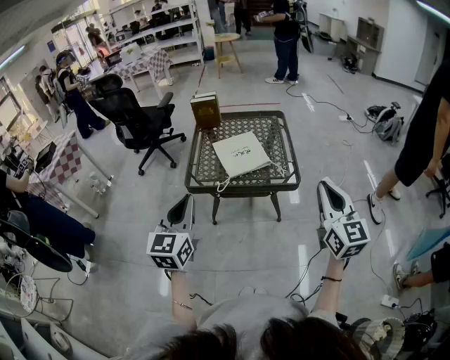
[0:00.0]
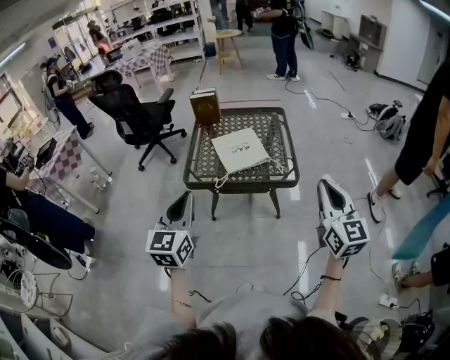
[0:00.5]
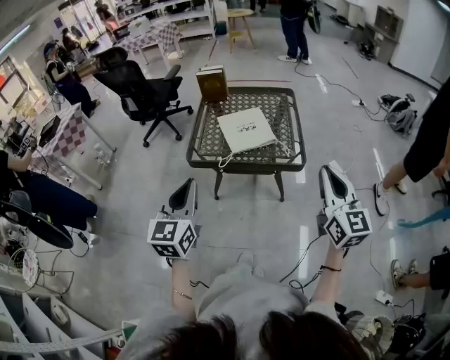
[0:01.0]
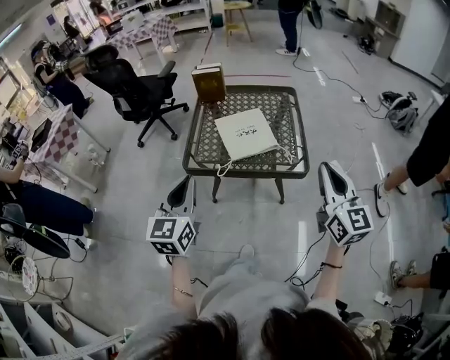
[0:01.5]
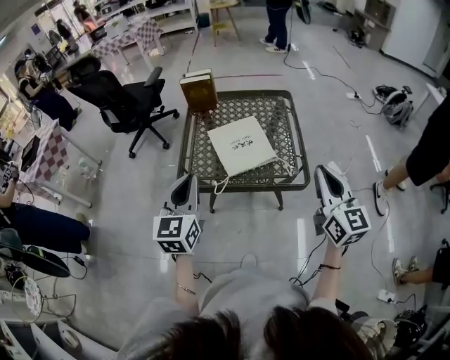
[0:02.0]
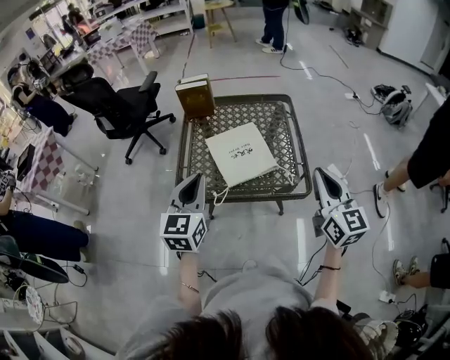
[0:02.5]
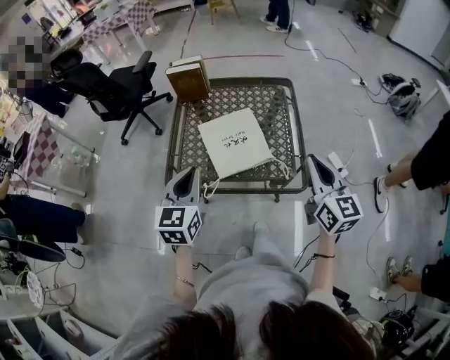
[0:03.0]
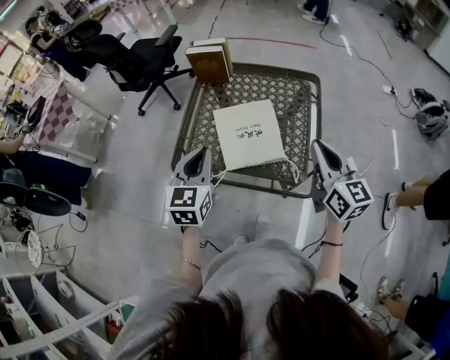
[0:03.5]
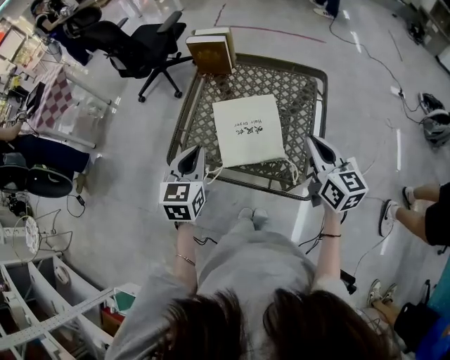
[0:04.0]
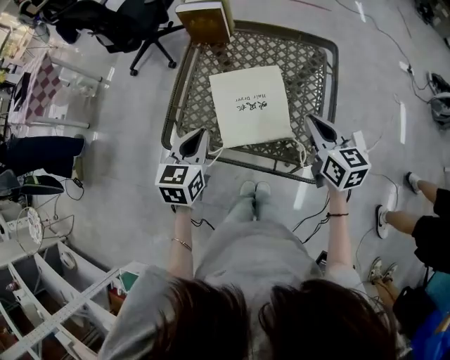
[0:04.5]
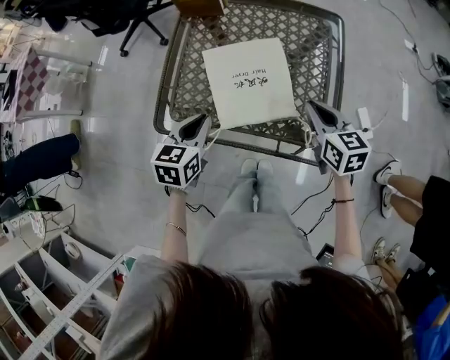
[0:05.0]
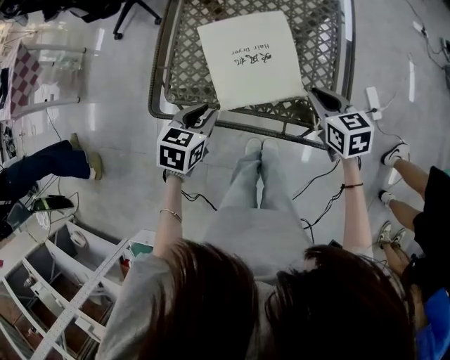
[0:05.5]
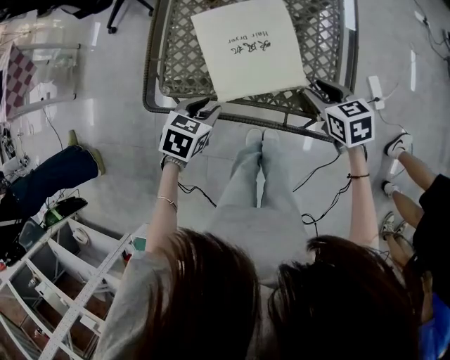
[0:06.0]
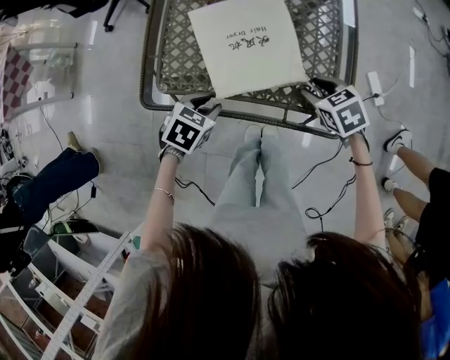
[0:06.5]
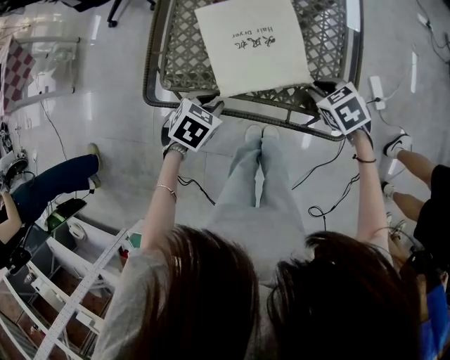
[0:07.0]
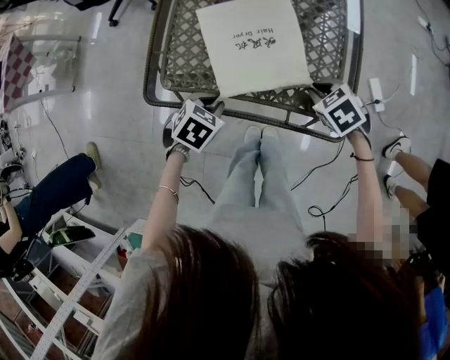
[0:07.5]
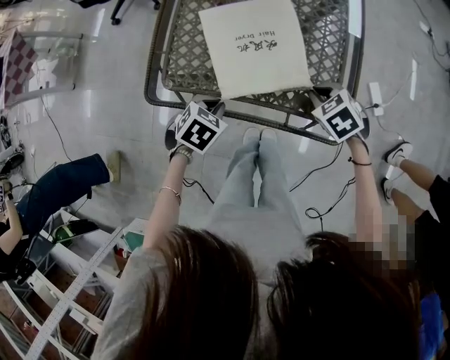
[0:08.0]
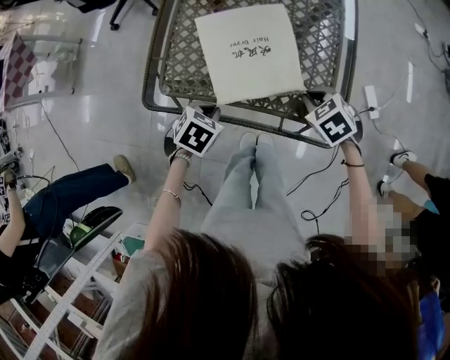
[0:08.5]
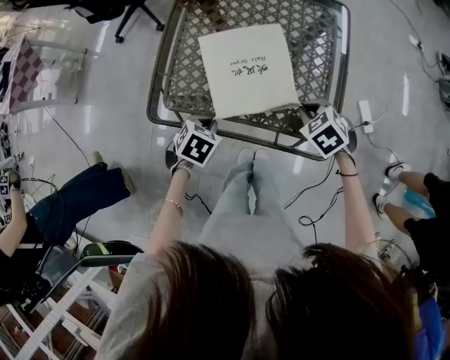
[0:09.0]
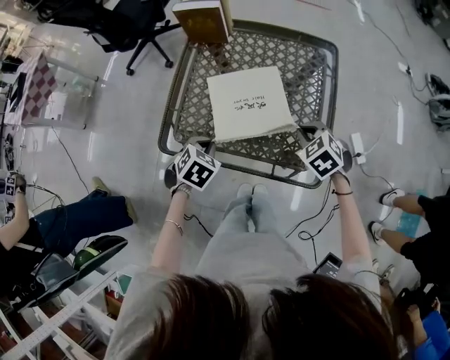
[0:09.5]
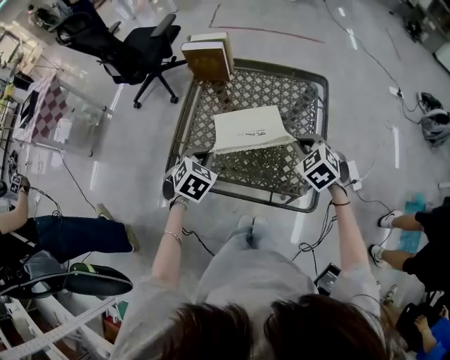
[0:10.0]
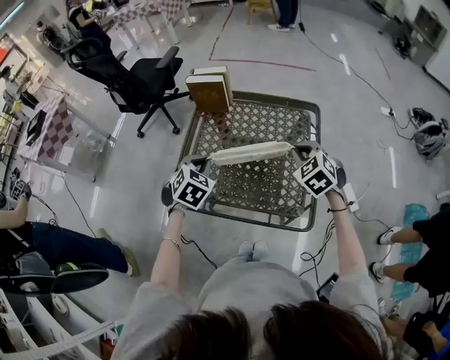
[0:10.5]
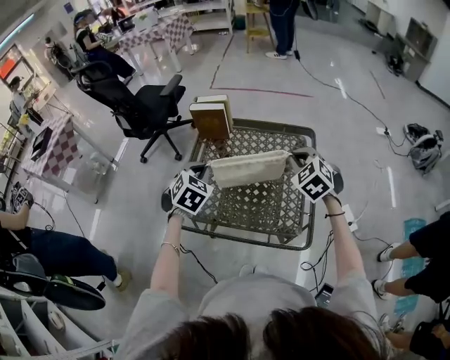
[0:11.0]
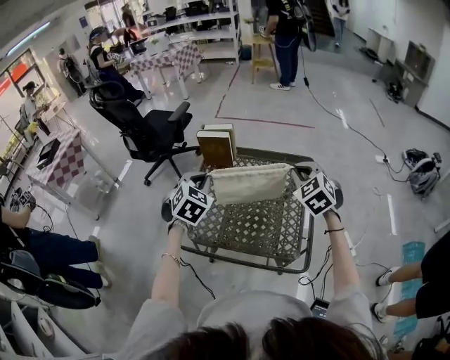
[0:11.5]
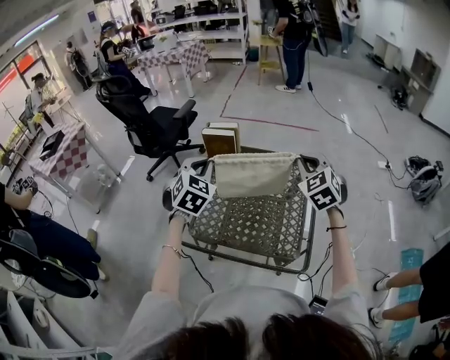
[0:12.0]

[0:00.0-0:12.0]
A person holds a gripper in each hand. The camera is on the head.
0:00.0 to 0:02.0: Both grippers travel together forward, approximately 15 cm.
0:02.0 to 0:04.0: Both grippers move forward and downward, some 20 cm. The right gripper turns by about 30 degrees.
0:04.0 to 0:06.0: The grippers both shift downward by roughly 25 cm. The left gripper points its fingers about 30 degrees further downward, and opens, while the right gripper tilts its fingers about 40 degrees downward, and opens.
0:06.0 to 0:08.0: The right gripper rotates approximately 30 degrees, and closes up. The left gripper closes up.
0:08.0 to 0:10.0: The grippers both shift upward and forward by about 15 cm. The left gripper swivels approximately 20 degrees; the right gripper swivels about 20 degrees.
0:10.0 to 0:12.0: Both grippers move upward, approximately 25 cm. The left gripper tilts its fingers about 30 degrees upward, while the right gripper swivels about 30 degrees.

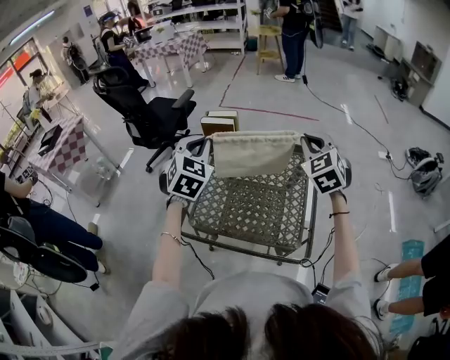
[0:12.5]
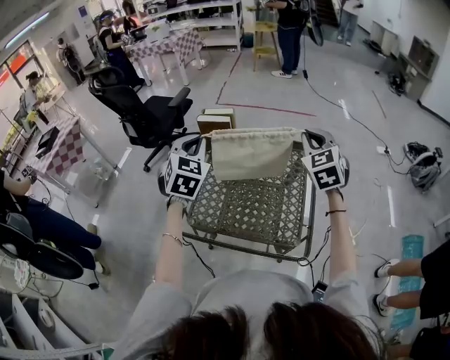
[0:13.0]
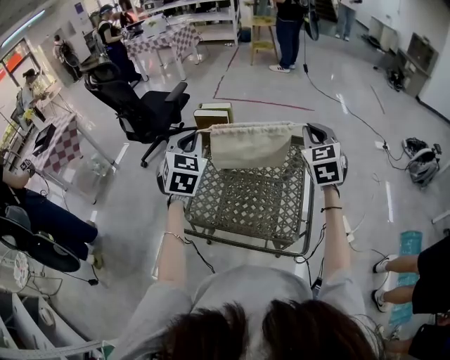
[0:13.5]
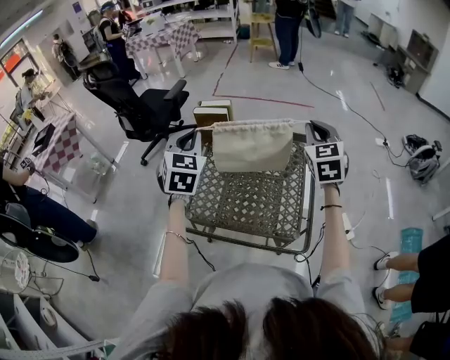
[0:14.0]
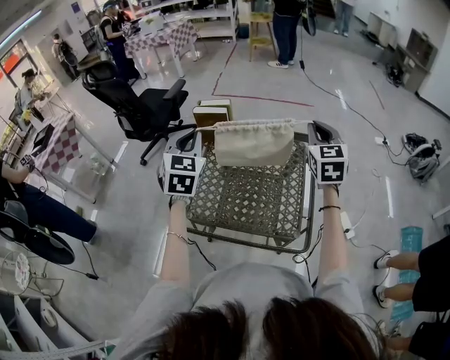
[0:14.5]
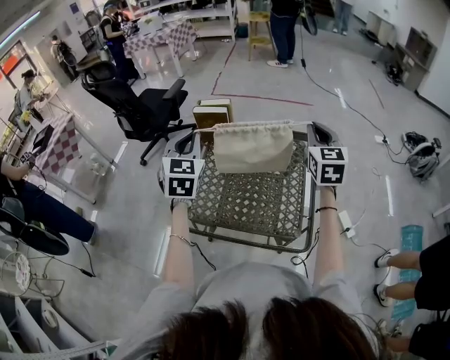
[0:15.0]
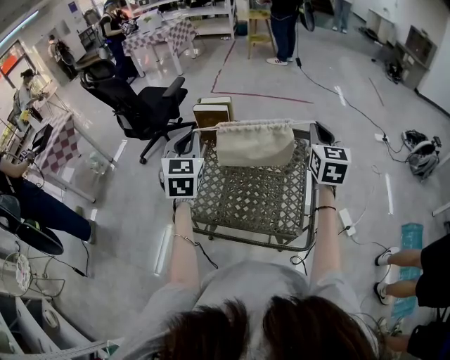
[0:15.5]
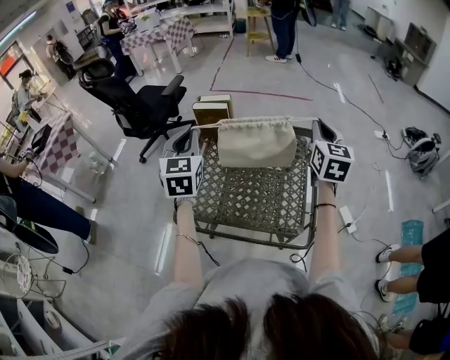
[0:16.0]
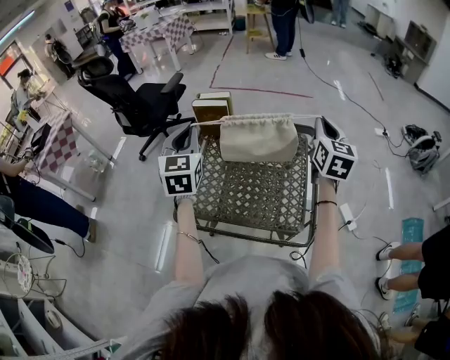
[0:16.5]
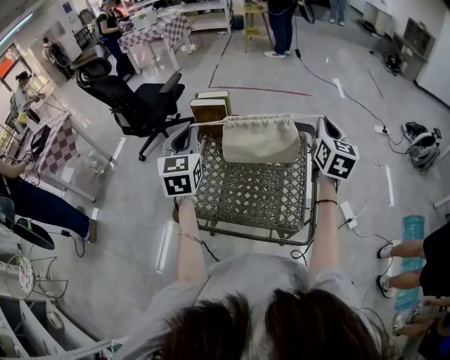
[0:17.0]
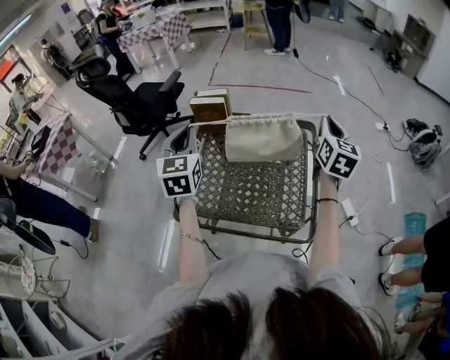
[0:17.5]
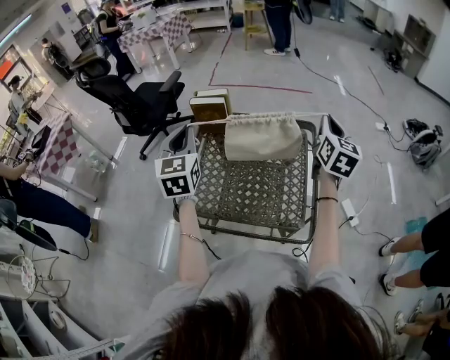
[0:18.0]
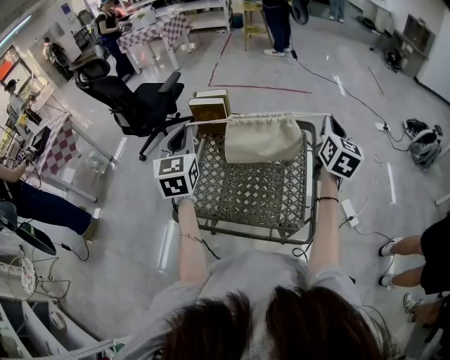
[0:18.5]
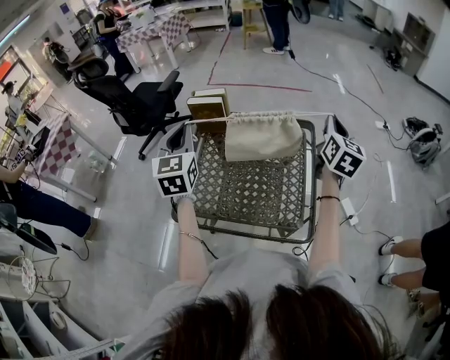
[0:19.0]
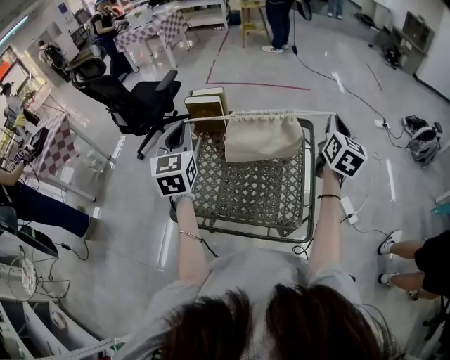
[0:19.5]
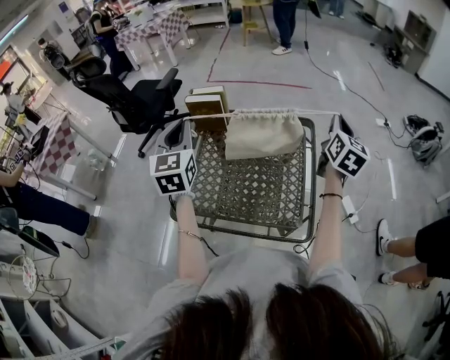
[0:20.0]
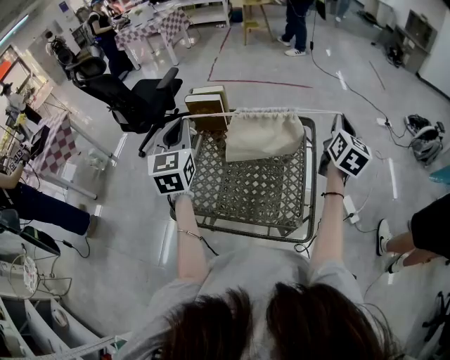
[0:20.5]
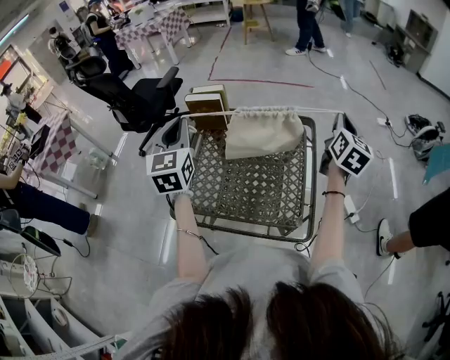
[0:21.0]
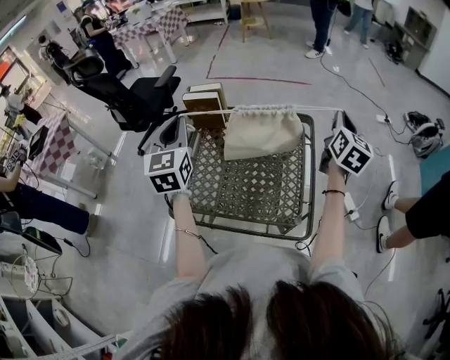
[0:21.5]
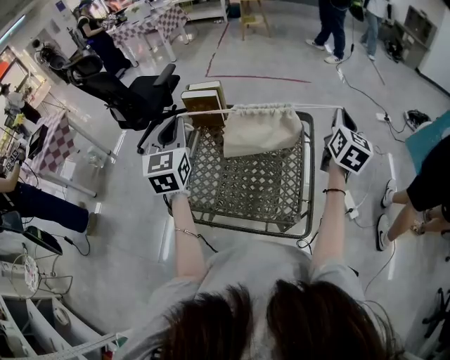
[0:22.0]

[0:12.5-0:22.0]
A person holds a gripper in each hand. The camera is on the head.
0:12.5 to 0:14.5: The right gripper rotates approximately 30 degrees.
0:14.5 to 0:16.5: The right gripper turns by approximately 20 degrees.
0:16.5 to 0:18.0: The grippers stay close to where they were, moving slightly.
0:18.0 to 0:20.0: The right gripper goes roughly 5 cm to the right.
0:20.0 to 0:22.0: The grippers move only a little.

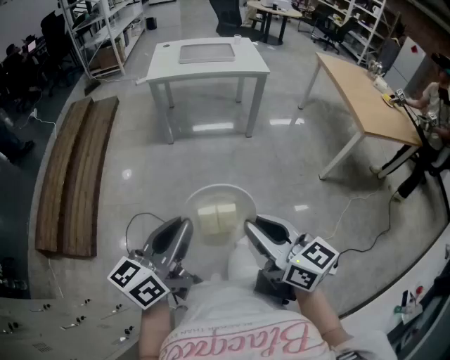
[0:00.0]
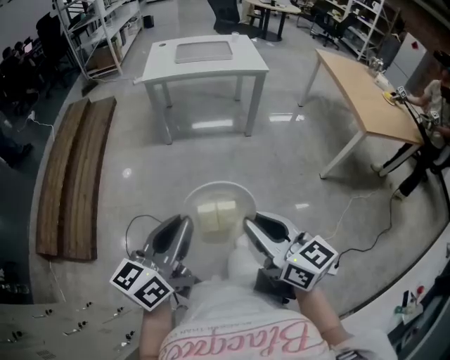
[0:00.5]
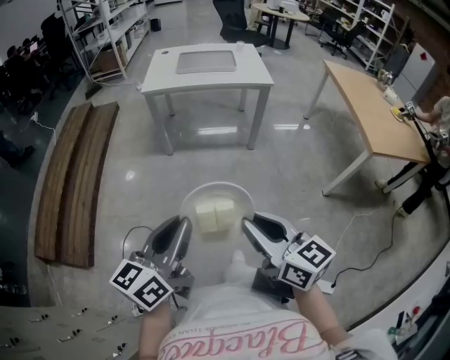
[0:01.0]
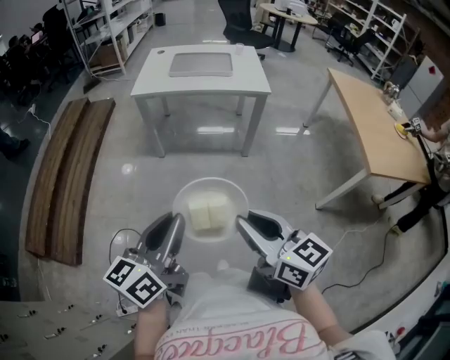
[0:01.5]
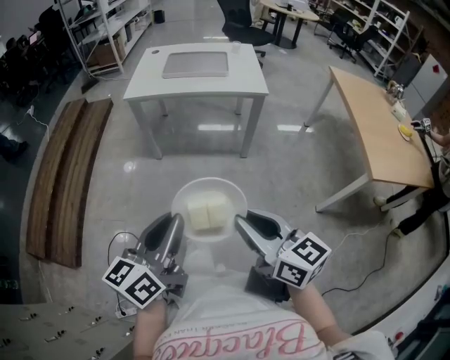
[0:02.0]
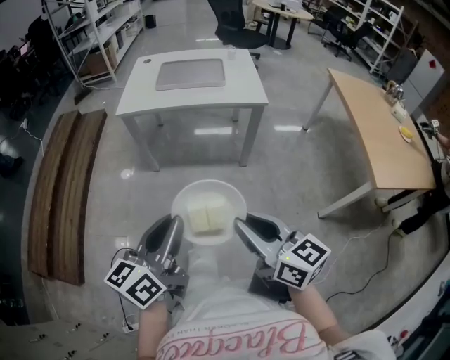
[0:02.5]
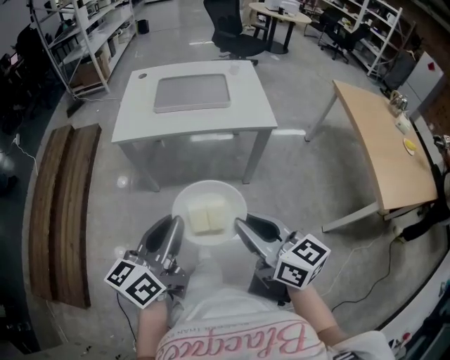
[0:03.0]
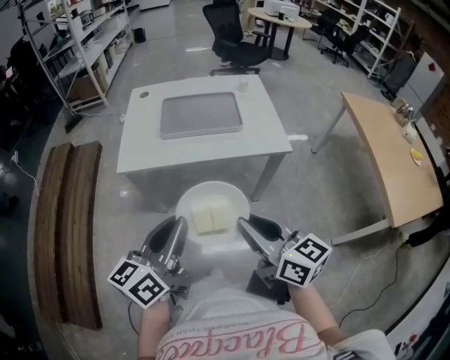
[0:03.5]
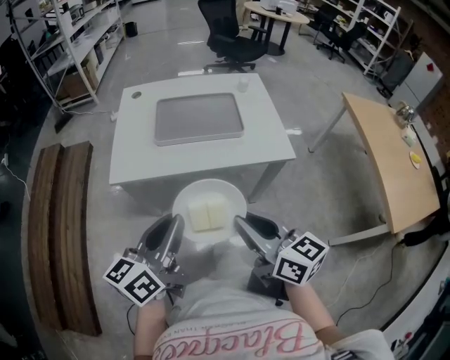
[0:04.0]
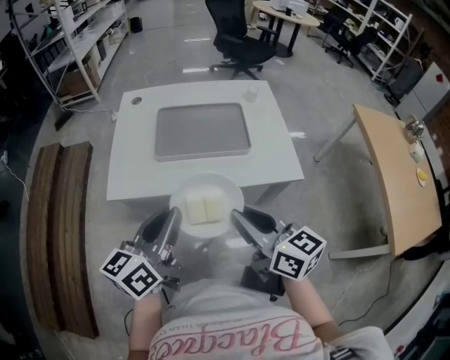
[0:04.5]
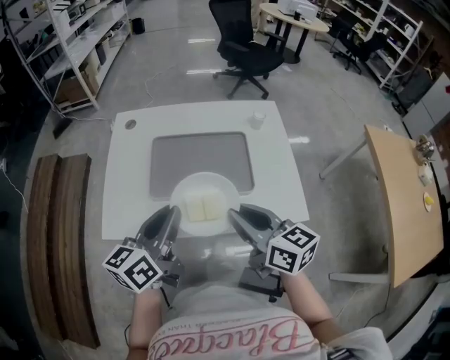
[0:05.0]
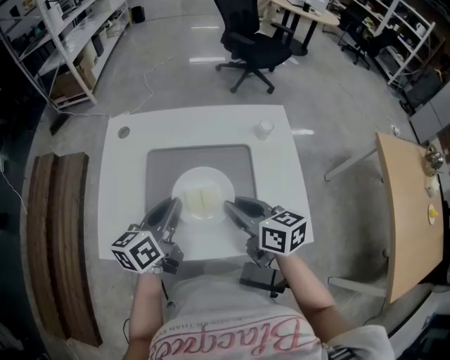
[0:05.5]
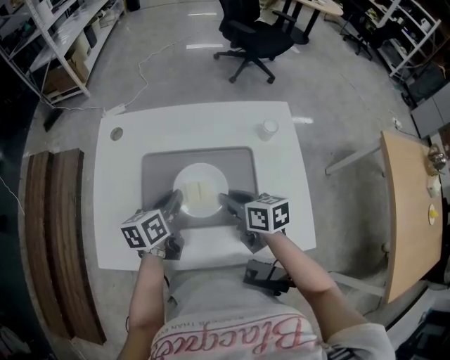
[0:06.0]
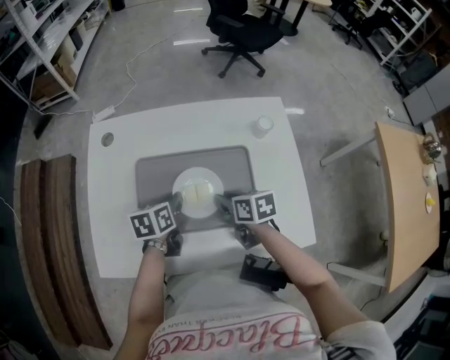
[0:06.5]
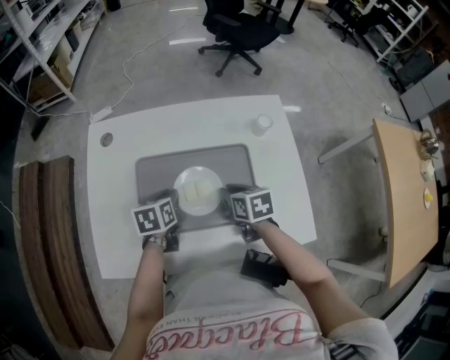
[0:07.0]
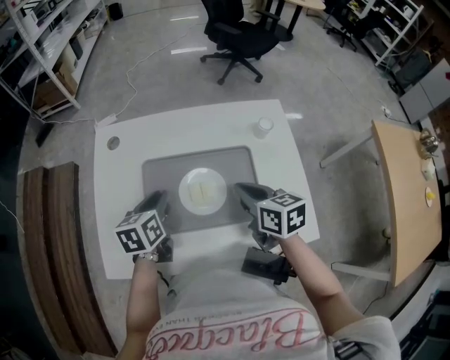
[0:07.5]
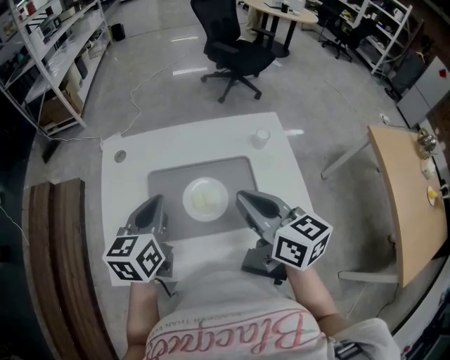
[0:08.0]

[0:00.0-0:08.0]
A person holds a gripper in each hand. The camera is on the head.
0:00.0 to 0:02.0: The two grippers go approximately 20 cm forward and to the right.
0:02.0 to 0:04.0: The two grippers go about 35 cm forward.
0:04.0 to 0:06.0: The grippers both shift forward and downward by approximately 40 cm. The right gripper changes its angle by about 30 degrees. Meanwhile the left gripper rotates roughly 30 degrees.
0:06.0 to 0:08.0: The two grippers go about 15 cm upward. The right gripper rotates about 30 degrees. The left gripper rotates about 20 degrees.
